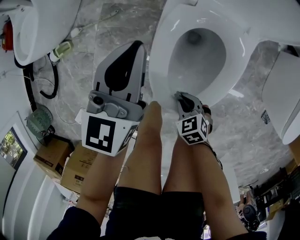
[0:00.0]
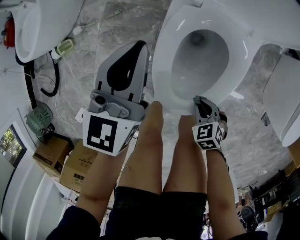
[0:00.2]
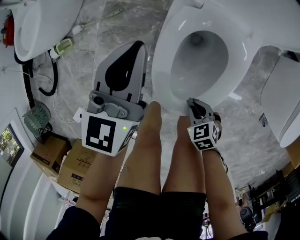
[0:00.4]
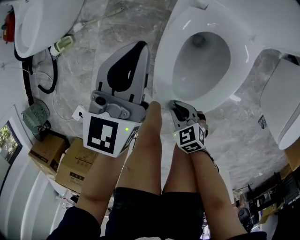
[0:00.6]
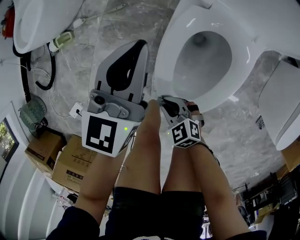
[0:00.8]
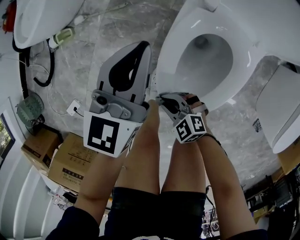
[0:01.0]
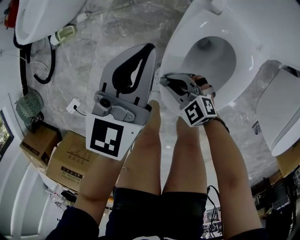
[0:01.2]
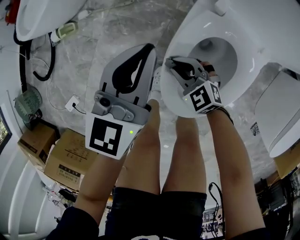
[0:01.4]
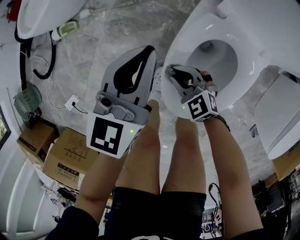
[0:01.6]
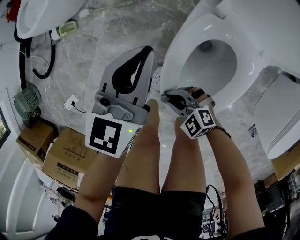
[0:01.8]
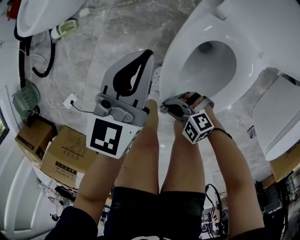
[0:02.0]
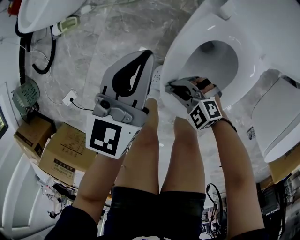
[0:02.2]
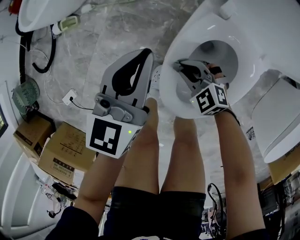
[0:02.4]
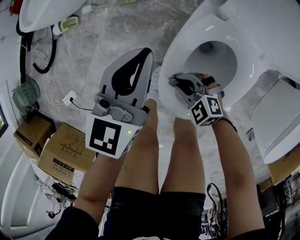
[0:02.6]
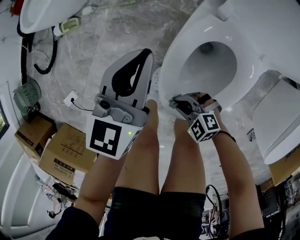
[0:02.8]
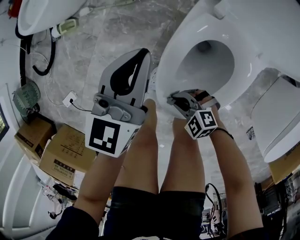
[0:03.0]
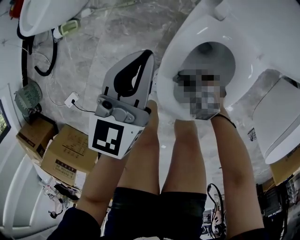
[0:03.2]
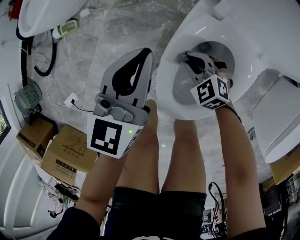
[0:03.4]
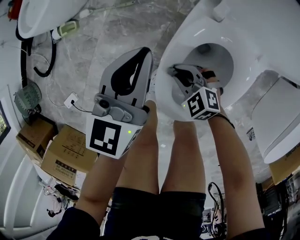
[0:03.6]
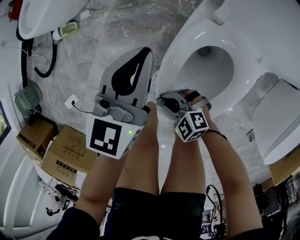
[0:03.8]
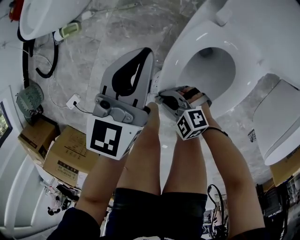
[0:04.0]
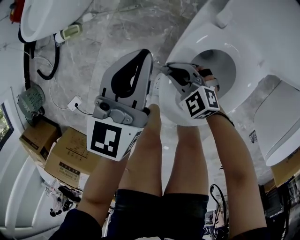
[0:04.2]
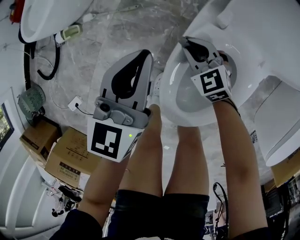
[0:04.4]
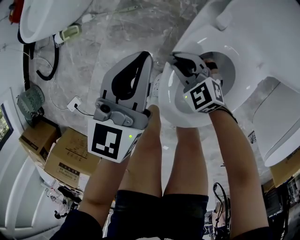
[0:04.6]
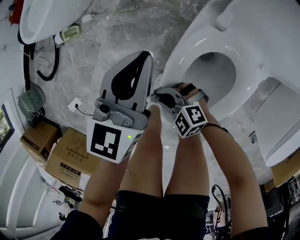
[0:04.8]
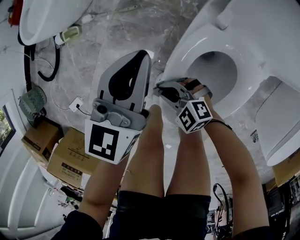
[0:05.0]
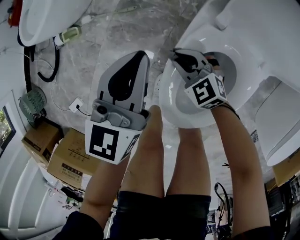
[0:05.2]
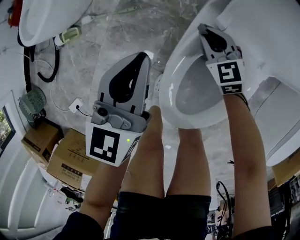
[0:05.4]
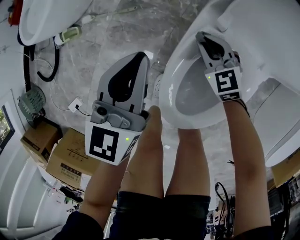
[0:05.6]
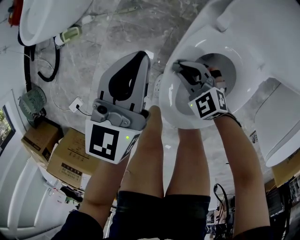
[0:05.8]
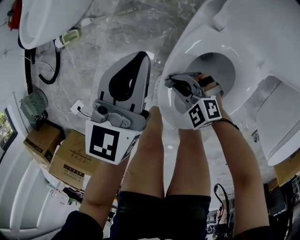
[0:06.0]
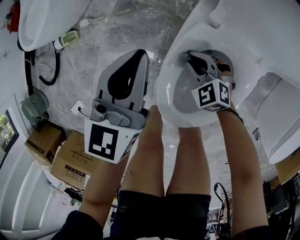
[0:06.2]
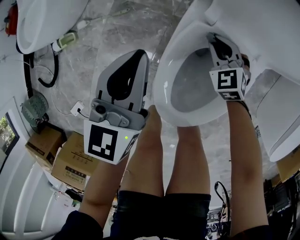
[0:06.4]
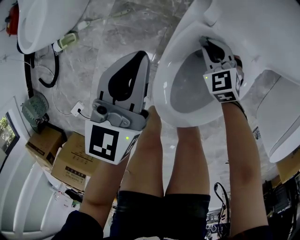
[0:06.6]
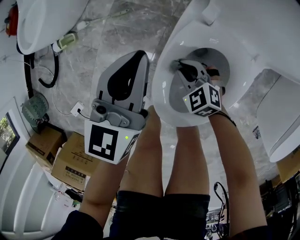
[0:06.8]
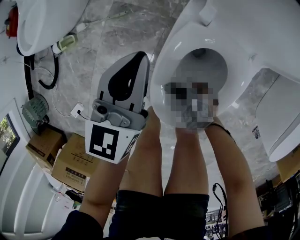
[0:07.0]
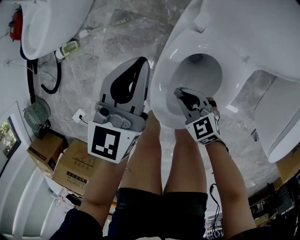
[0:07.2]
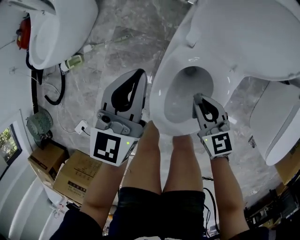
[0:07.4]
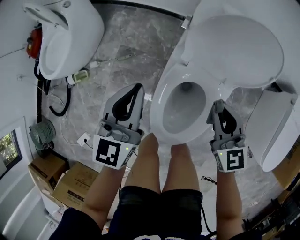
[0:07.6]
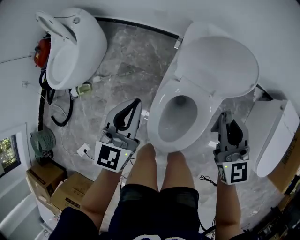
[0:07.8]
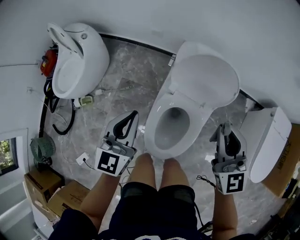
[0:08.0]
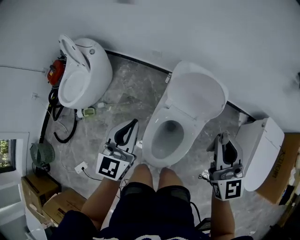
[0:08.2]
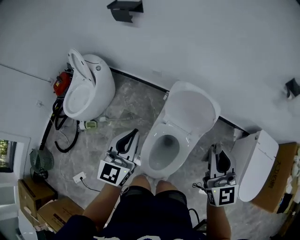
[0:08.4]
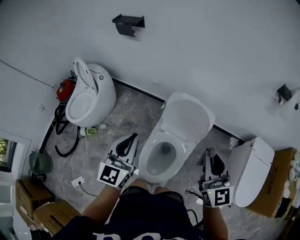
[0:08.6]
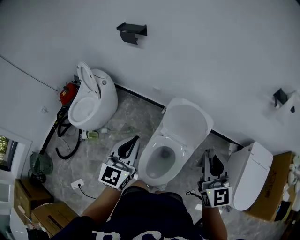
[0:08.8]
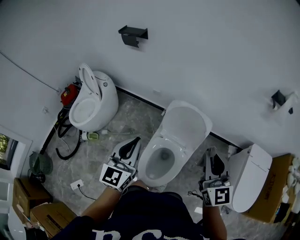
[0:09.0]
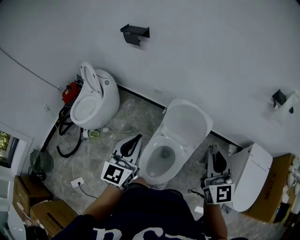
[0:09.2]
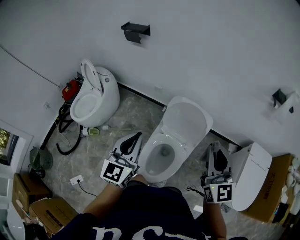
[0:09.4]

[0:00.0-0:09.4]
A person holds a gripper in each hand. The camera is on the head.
0:00.0 to 0:01.6: The right gripper goes about 15 cm forward, and changes its angle by roughly 40 degrees. The left gripper is displaced to the left by roughly 5 cm.
0:01.6 to 0:03.2: The right gripper swings forward and backward, approximately 15 cm each way, with 3 reversals, and turns by approximately 20 degrees.
0:03.2 to 0:04.8: The right gripper swings forward and backward, some 20 cm each way, with 3 reversals. Meanwhile the left gripper ends up about 5 cm from where it was.
0:04.8 to 0:06.2: The right gripper moves some 20 cm, and changes its angle by approximately 30 degrees.
0:06.2 to 0:07.8: The left gripper is displaced upward by some 20 cm. The right gripper heads upward, covering roughly 40 cm, and tips its fingers upward by approximately 30 degrees.
0:07.8 to 0:09.4: The right gripper travels upward by about 35 cm, while the left gripper is displaced upward and backward by about 35 cm.
